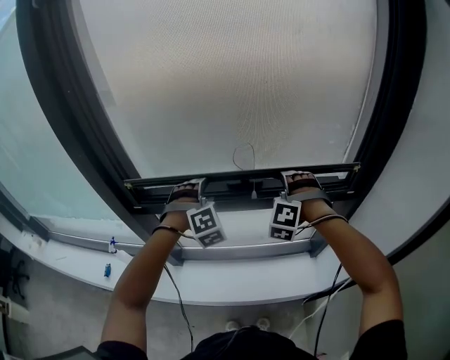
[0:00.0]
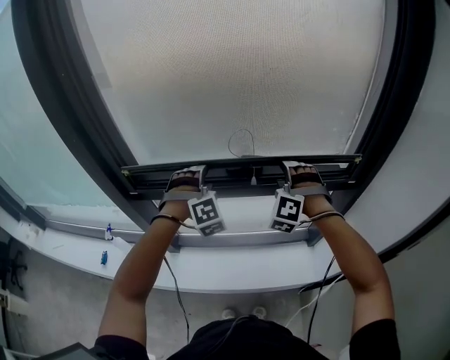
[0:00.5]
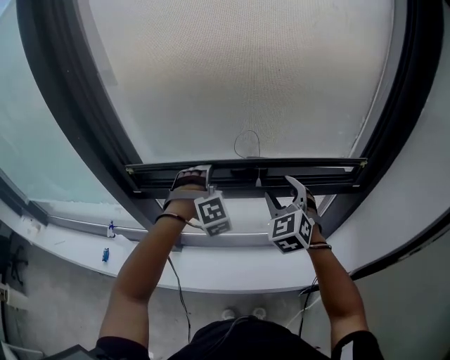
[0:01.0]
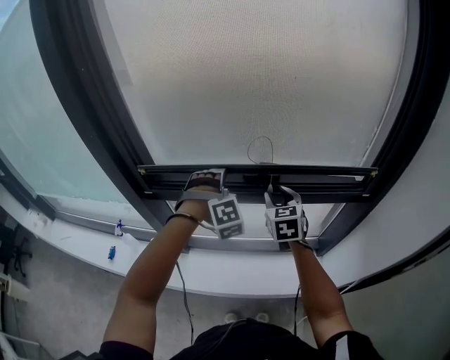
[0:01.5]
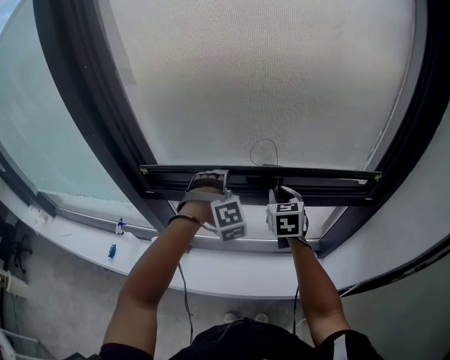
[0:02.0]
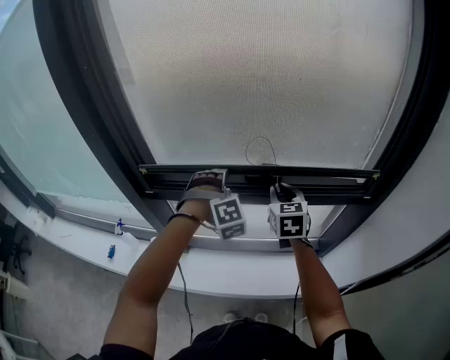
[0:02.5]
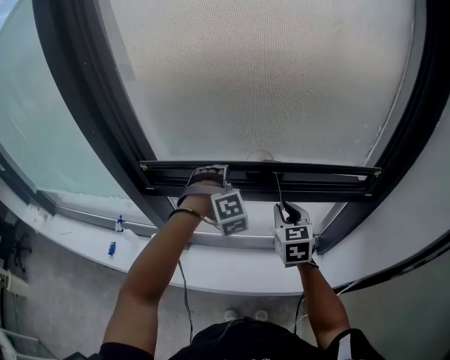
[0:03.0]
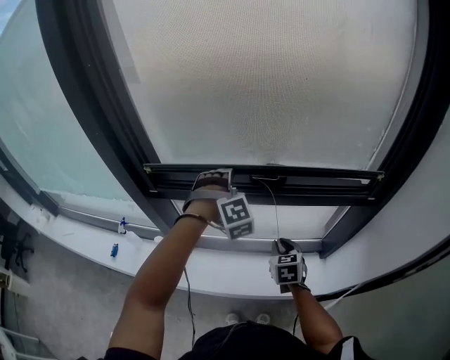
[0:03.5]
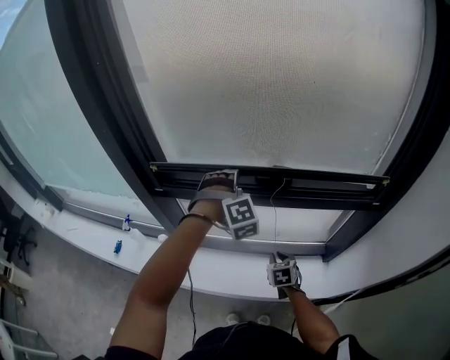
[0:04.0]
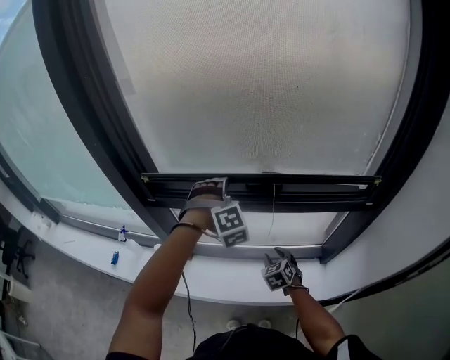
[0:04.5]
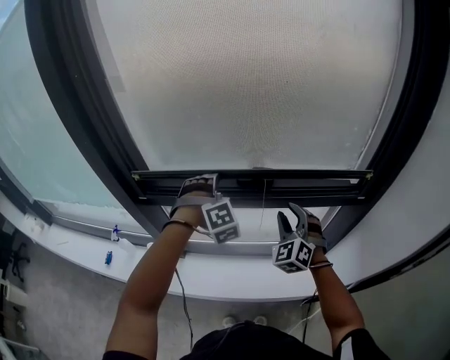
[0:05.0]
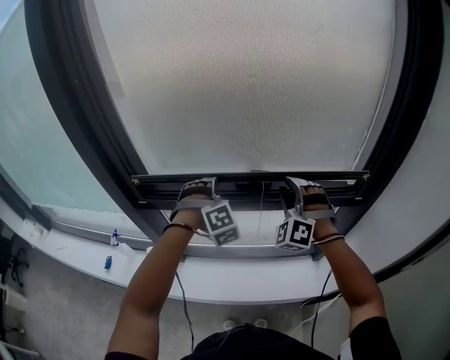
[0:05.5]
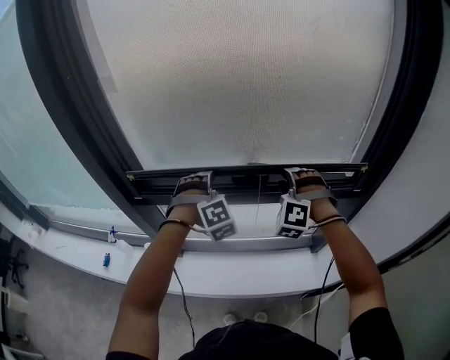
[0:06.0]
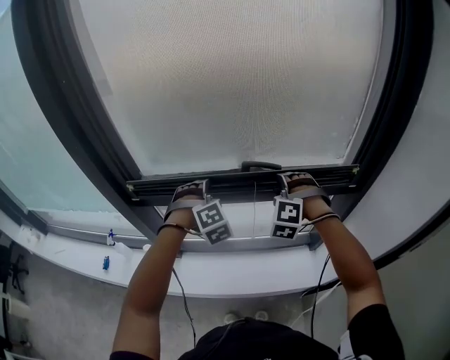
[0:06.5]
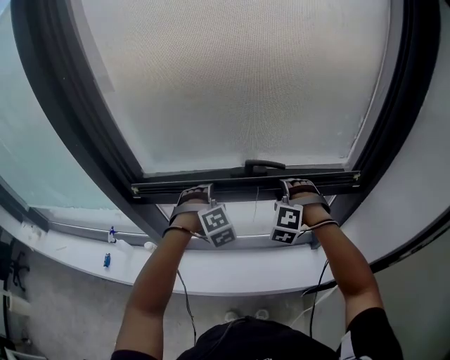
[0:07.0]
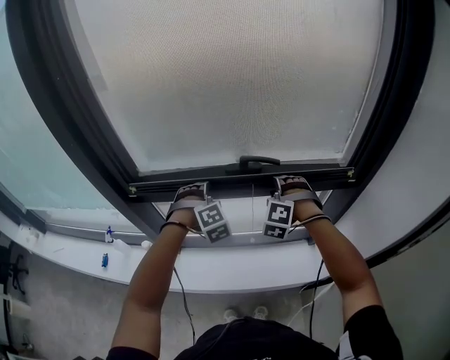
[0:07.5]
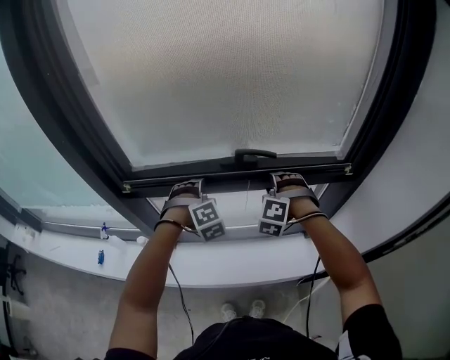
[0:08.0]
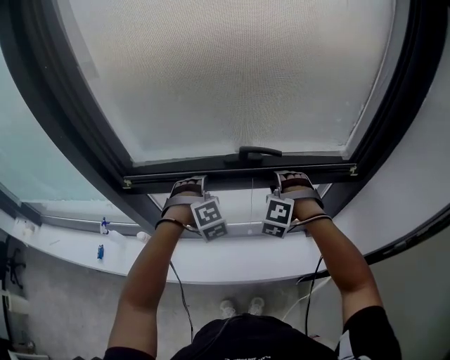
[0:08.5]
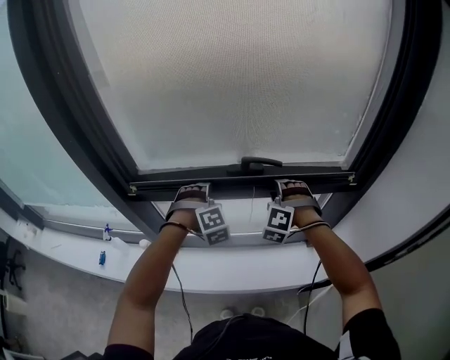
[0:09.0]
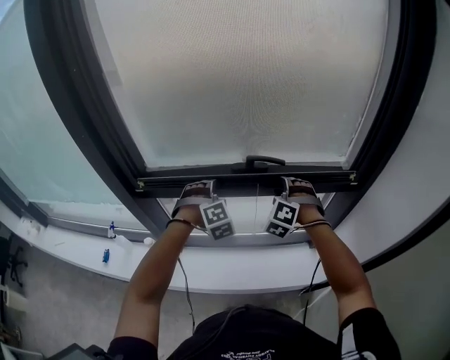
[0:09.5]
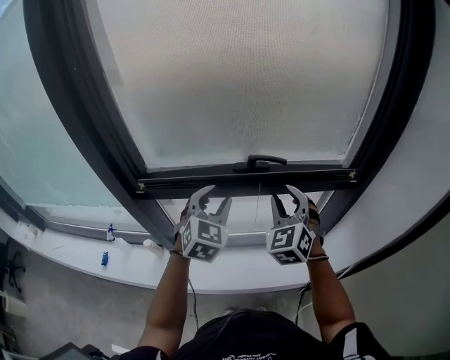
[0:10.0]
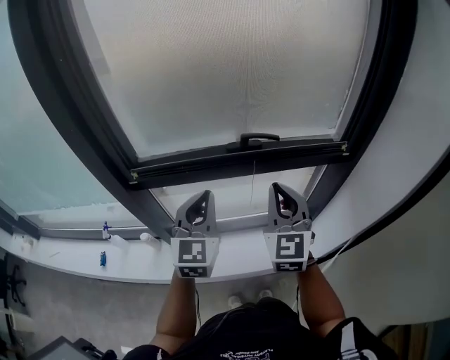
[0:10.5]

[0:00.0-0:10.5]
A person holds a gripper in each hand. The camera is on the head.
0:00.0 to 0:02.0: The right gripper heads to the left, covering approximately 5 cm, rolls clockwise, seen from behind, by roughly 80 degrees, and closes up.
0:02.0 to 0:04.0: The right gripper is displaced downward and backward by about 30 cm, and swivels roughly 20 degrees.
0:04.0 to 0:06.5: The right gripper heads upward and forward, covering about 25 cm, and twists approximately 80 degrees counterclockwise, seen from behind.
0:06.5 to 0:08.5: The left gripper goes some 5 cm downward.
0:08.5 to 0:10.5: The two grippers go some 20 cm backward and upward. The right gripper rolls clockwise, seen from behind, by approximately 70 degrees, and closes its fingers. The left gripper points its fingers some 40 degrees further upward, and closes its fingers.

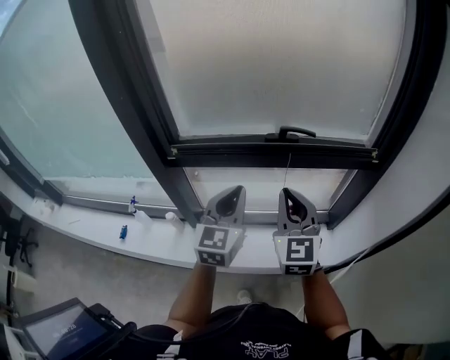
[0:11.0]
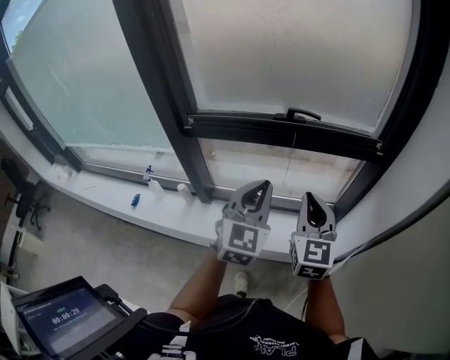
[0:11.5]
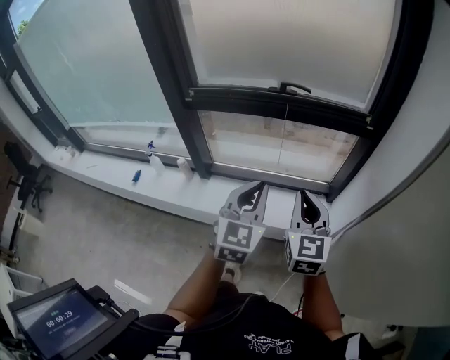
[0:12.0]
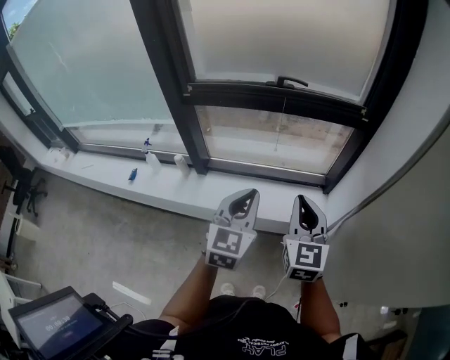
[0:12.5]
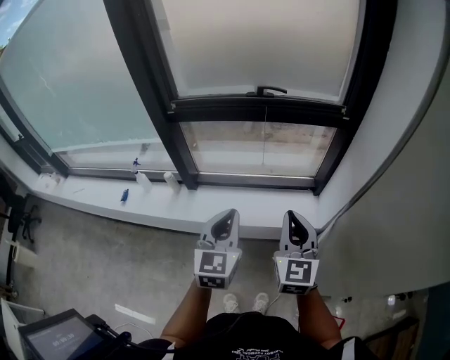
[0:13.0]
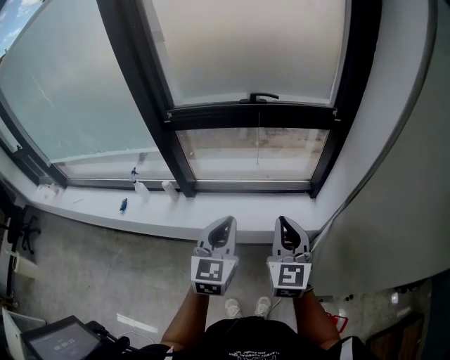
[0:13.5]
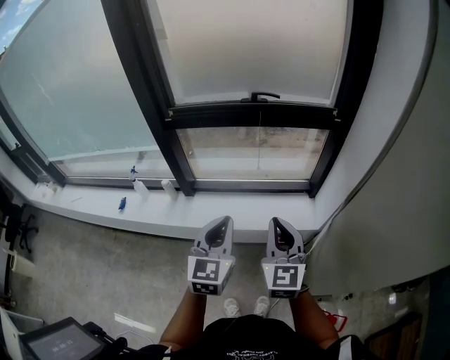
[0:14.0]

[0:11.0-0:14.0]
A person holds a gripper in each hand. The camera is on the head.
0:11.0 to 0:12.5: Both grippers move backward and to the right, roughly 25 cm.
0:12.5 to 0:14.0: The grippers move only a little.

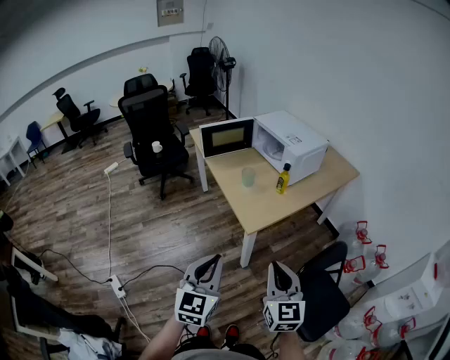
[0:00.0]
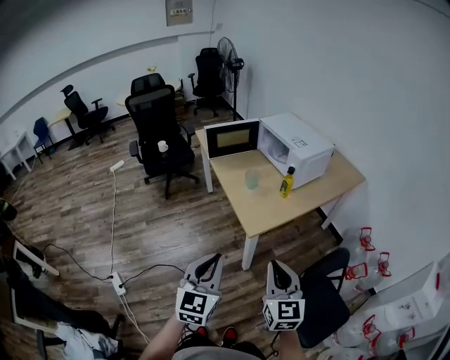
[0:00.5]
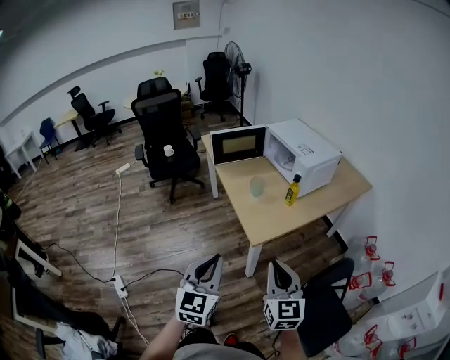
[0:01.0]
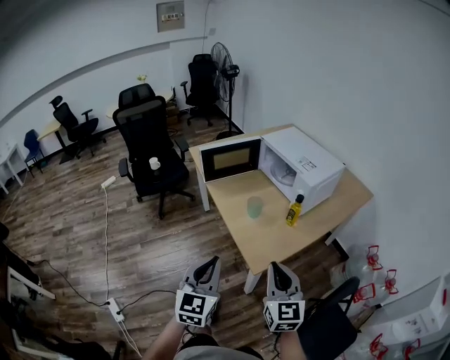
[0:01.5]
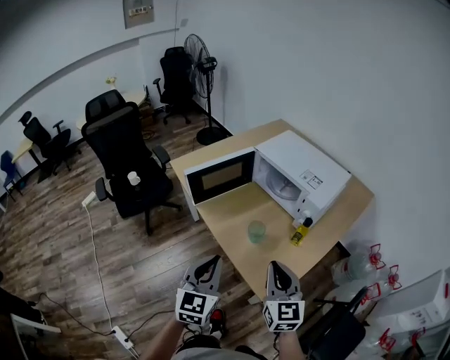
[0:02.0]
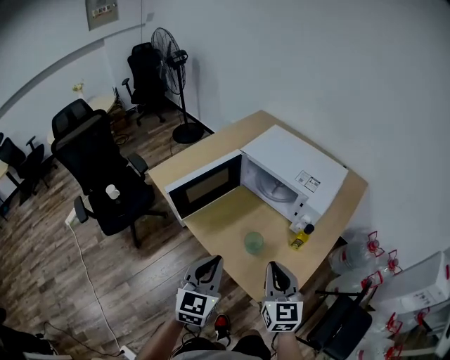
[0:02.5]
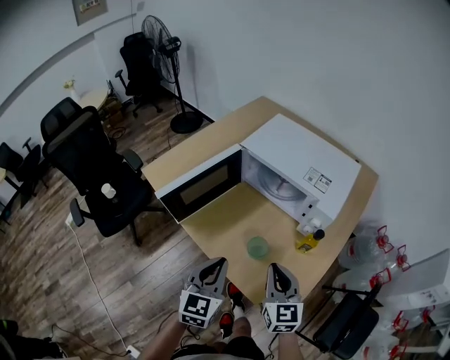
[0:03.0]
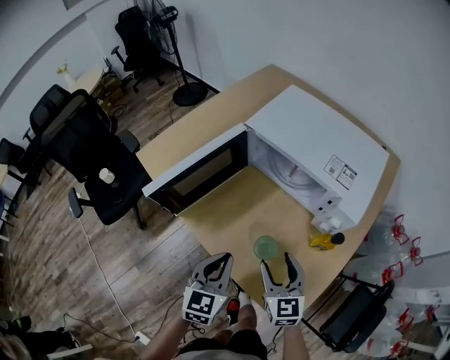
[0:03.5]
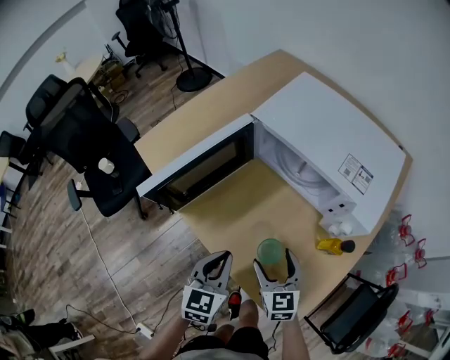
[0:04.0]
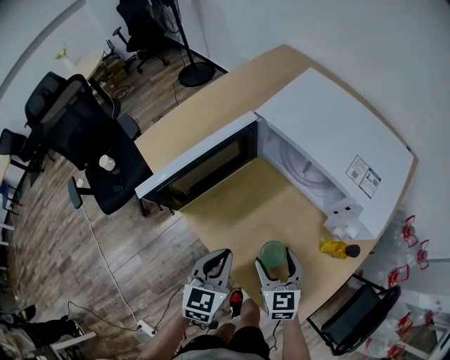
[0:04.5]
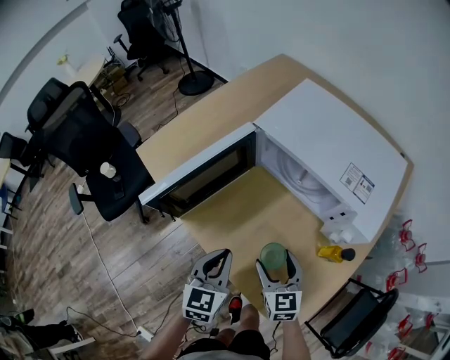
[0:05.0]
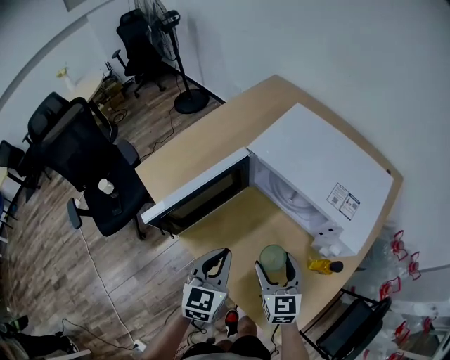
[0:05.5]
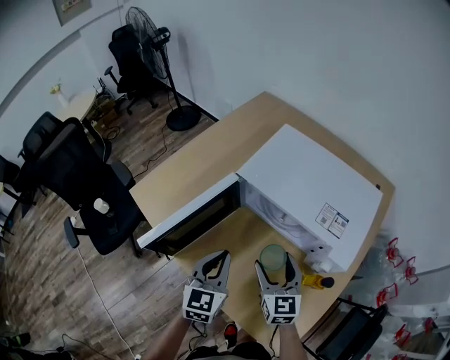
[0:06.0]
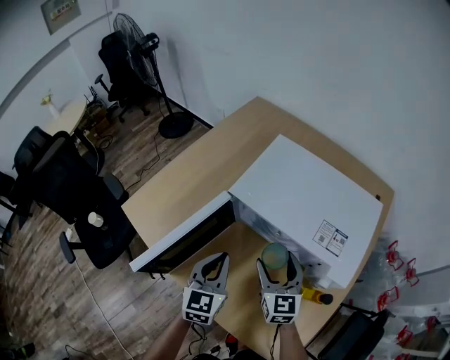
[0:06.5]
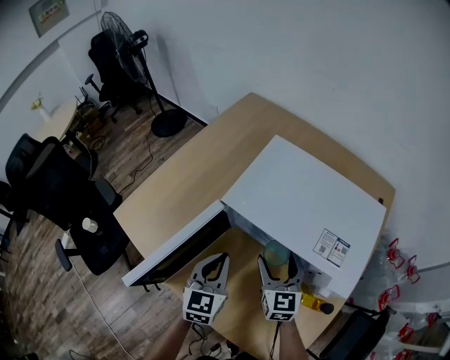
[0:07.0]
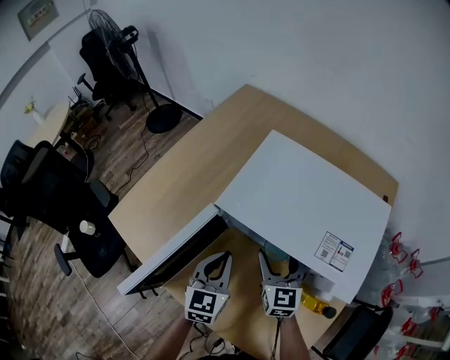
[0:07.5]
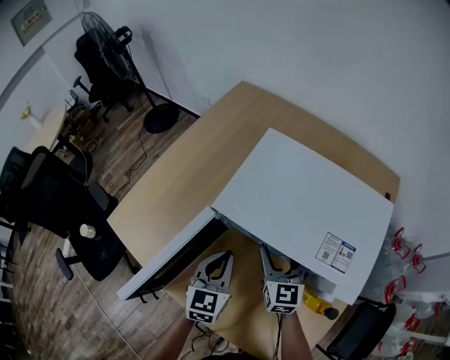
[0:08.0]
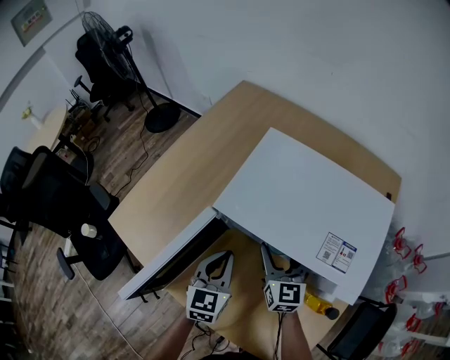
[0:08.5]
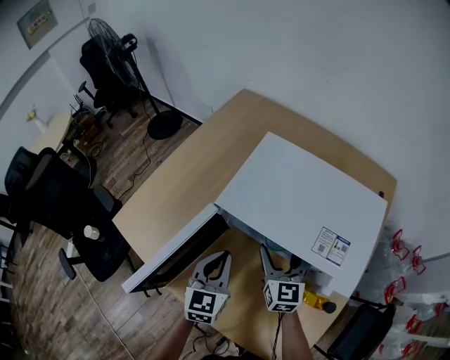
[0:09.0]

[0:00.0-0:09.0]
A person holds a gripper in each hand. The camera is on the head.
0:00.0 to 0:02.0: The grippers both shift forward by approximately 35 cm.
0:02.0 to 0:04.5: The left gripper is displaced forward and downward by approximately 30 cm, and turns by roughly 20 degrees, while the right gripper shifts about 30 cm downward and forward, turns by approximately 20 degrees, and opens up.
0:04.5 to 0:07.0: Both grippers move forward, roughly 20 cm.
0:07.0 to 0:09.0: The grippers move only a little.

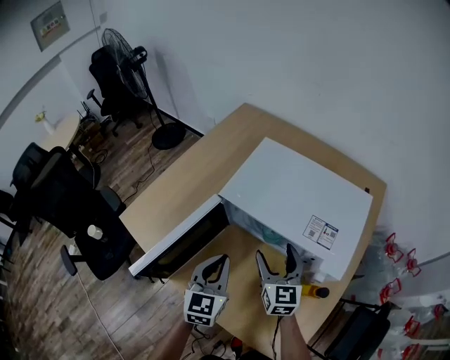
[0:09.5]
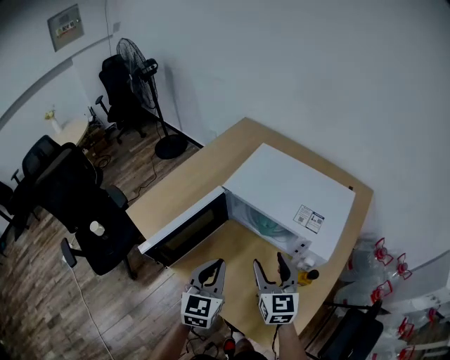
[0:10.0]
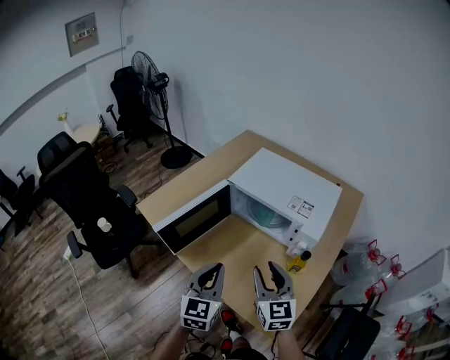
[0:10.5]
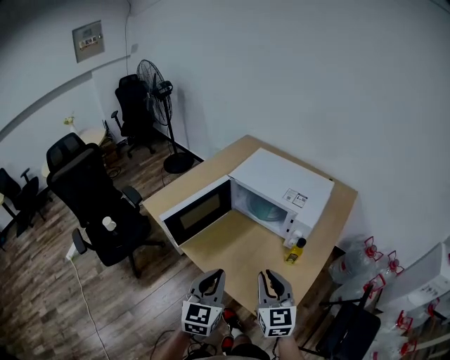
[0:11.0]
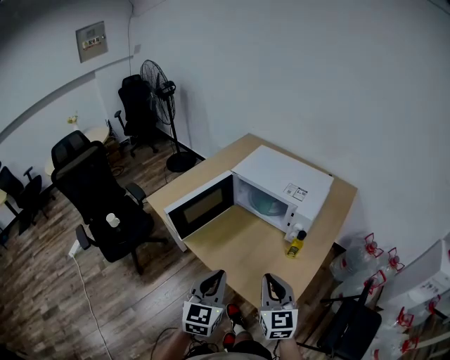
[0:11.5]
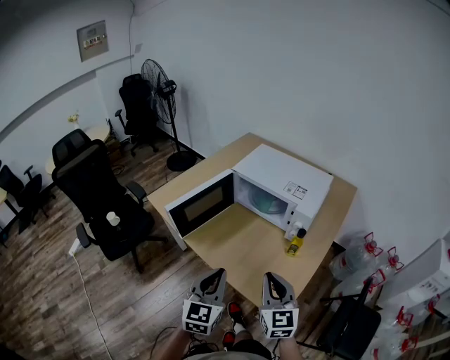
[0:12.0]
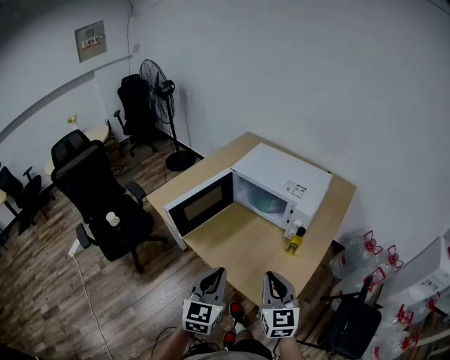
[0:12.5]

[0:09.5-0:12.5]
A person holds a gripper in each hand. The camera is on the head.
0:09.5 to 0:11.0: Both grippers travel together backward, approximately 30 cm. The right gripper closes its fingers.
0:11.0 to 0:12.5: The right gripper moves about 5 cm.

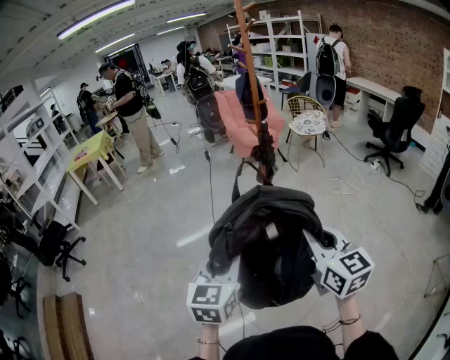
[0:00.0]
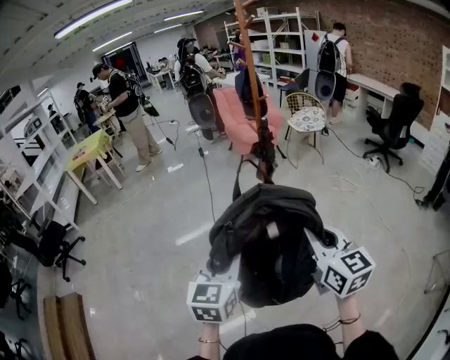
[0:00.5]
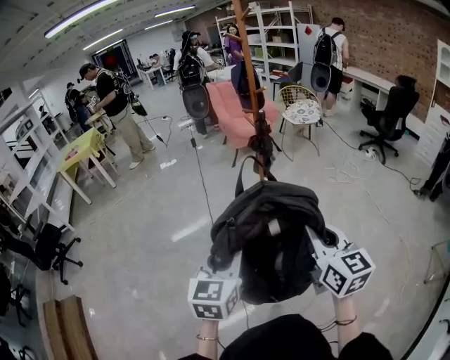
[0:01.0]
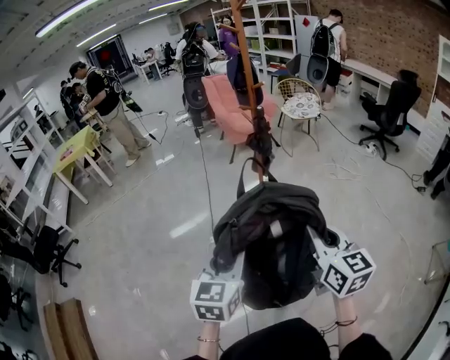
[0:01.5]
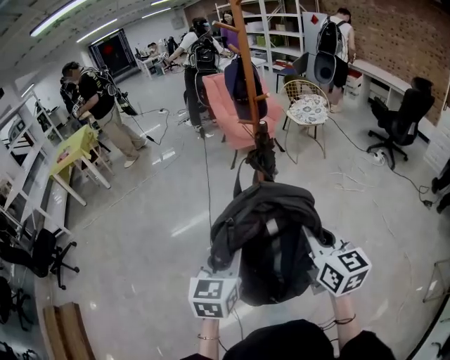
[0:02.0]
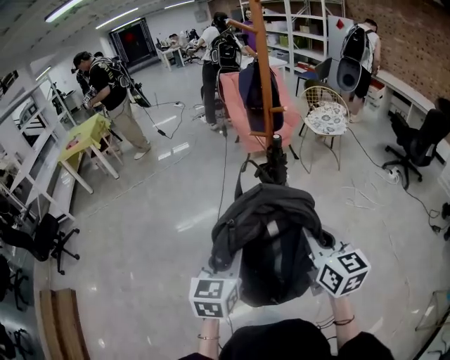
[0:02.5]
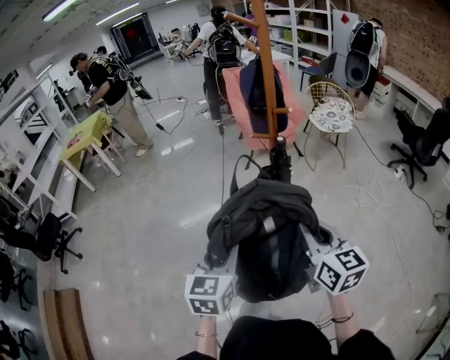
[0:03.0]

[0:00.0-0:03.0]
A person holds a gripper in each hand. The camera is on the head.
0:00.0 to 0:01.5: The two grippers go approximately 5 cm forward.
0:01.5 to 0:03.0: Both grippers move forward, approximately 30 cm.
